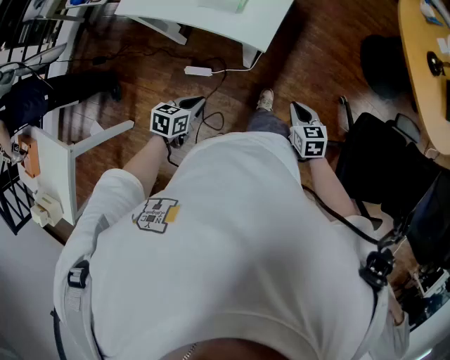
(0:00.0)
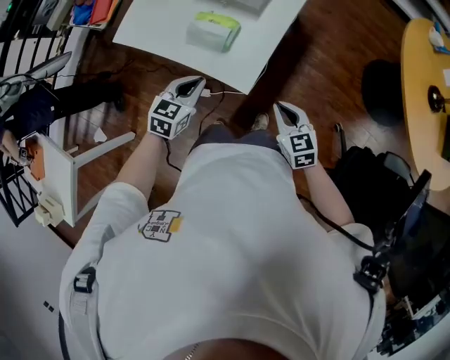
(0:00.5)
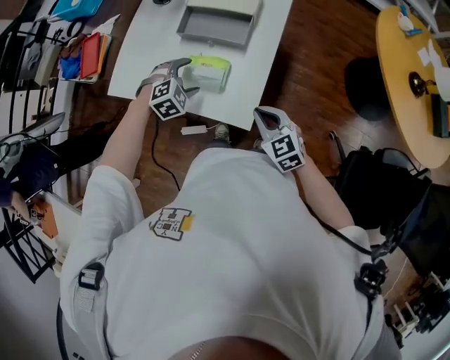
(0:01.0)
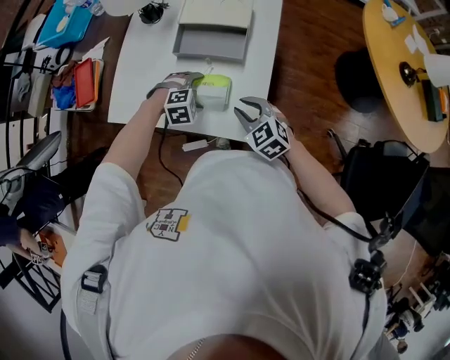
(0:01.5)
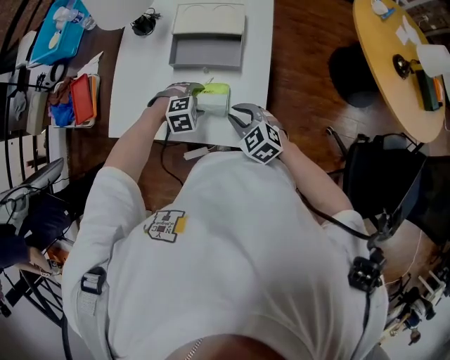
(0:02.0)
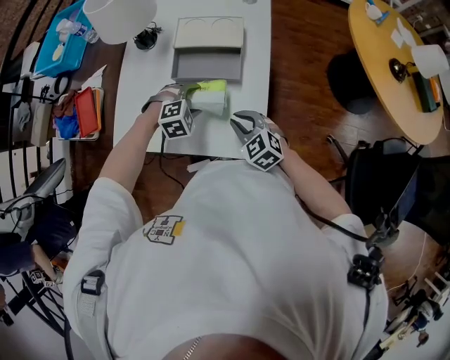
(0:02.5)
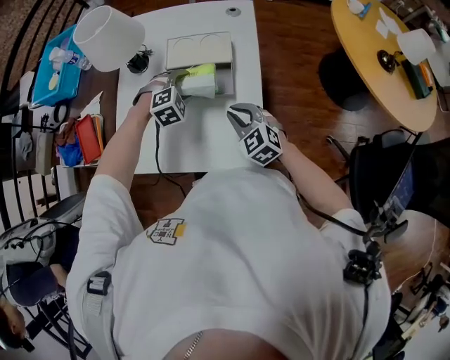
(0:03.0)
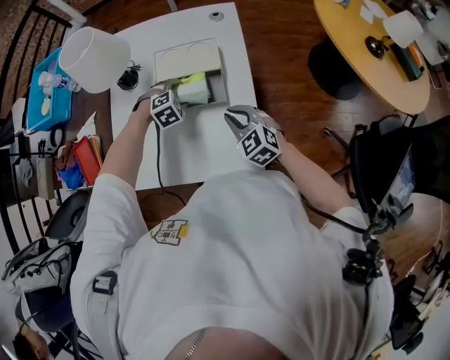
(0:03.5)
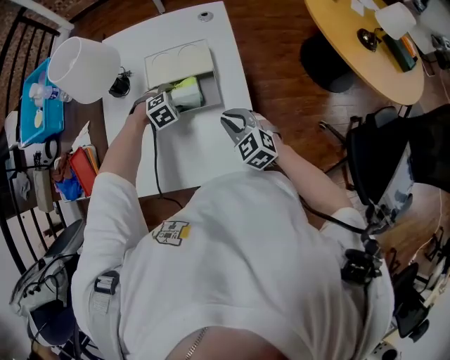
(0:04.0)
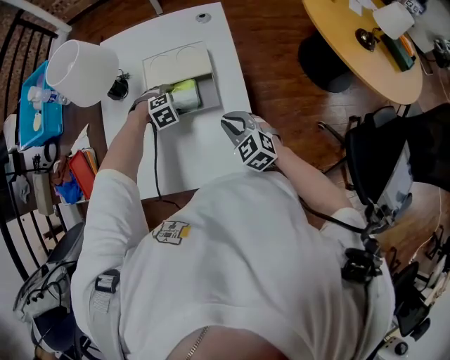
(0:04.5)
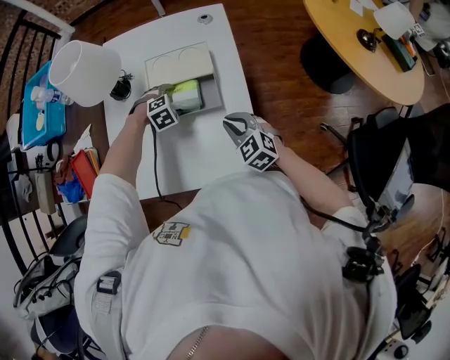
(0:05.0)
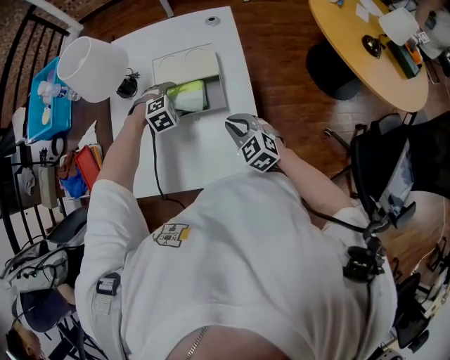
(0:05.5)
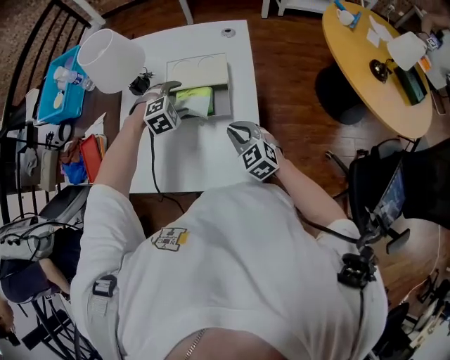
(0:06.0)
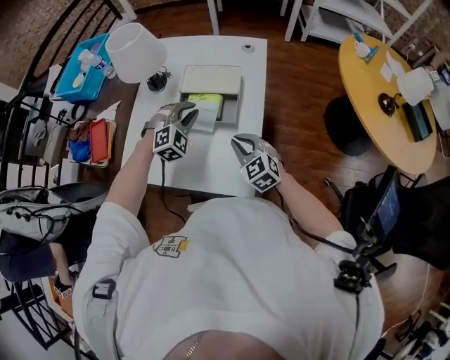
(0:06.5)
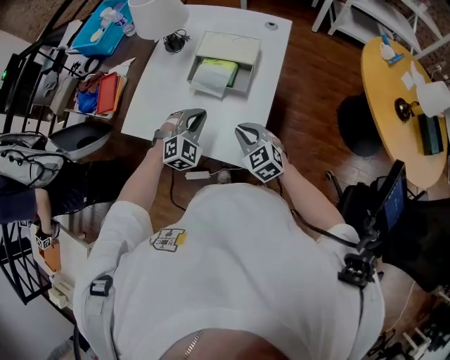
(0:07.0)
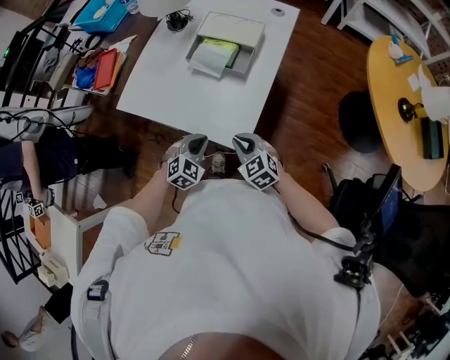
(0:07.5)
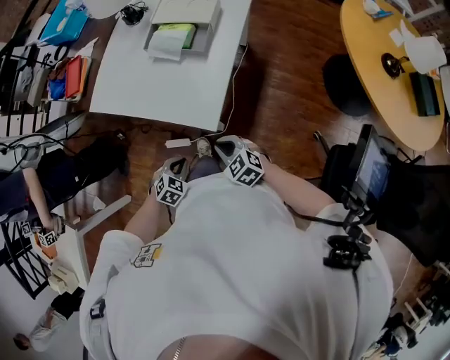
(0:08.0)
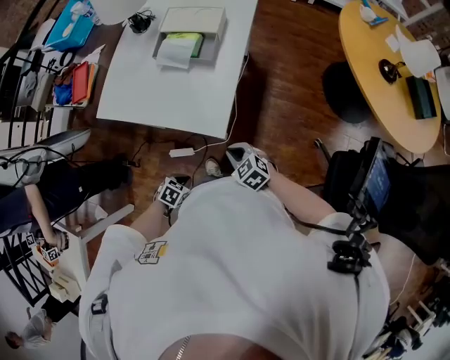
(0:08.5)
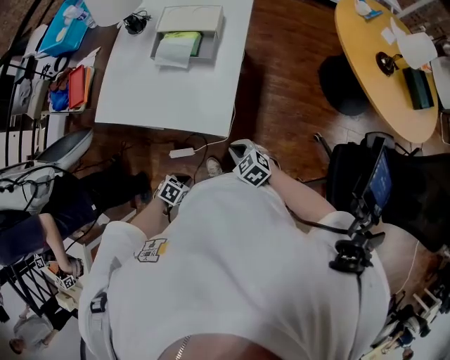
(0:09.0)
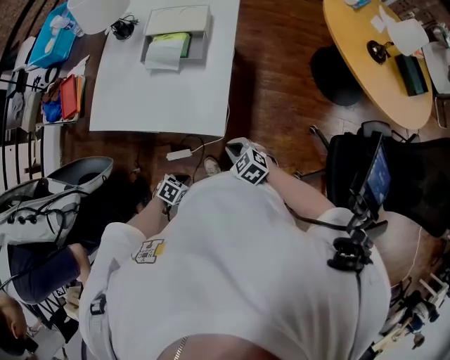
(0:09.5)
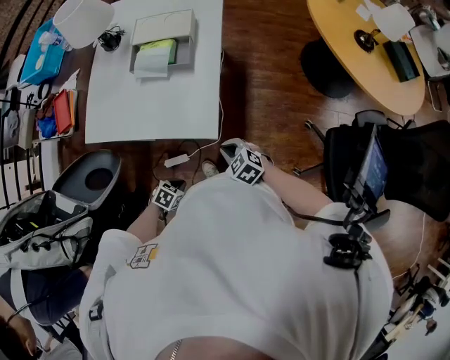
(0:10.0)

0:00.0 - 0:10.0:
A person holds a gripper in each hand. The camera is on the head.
0:00.0 - 0:02.0: The right gripper goes roughly 35 cm forward and to the left, and turns by some 30 degrees. Meanwhile the left gripper is displaced forward by approximately 35 cm, rolls clockwise, seen from behind, by some 90 degrees, and opens.
0:02.0 - 0:04.0: The left gripper heads forward, covering roughly 20 cm. The right gripper is displaced forward by approximately 10 cm.
0:04.0 - 0:06.0: The left gripper shifts some 10 cm upward.
0:06.0 - 0:08.0: The right gripper shifts by about 30 cm, and rotates roughly 30 degrees, while the left gripper ends up approximately 50 cm from where it was, rotates around the line of its fingers by about 50 degrees, counterclockwise from behind, and closes.
0:08.0 - 0:10.0: The left gripper ends up about 10 cm from where it was, and changes its angle by some 30 degrees.

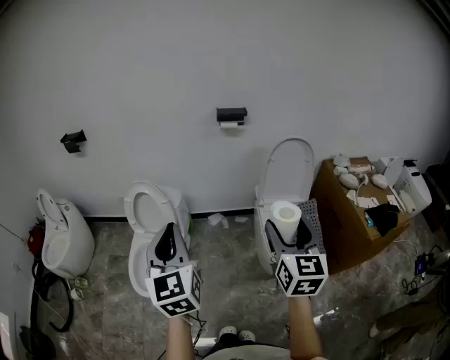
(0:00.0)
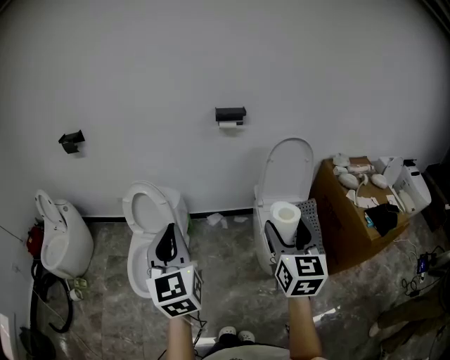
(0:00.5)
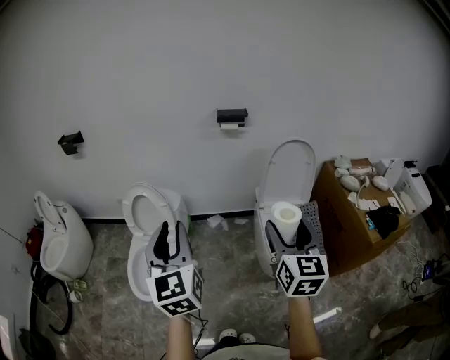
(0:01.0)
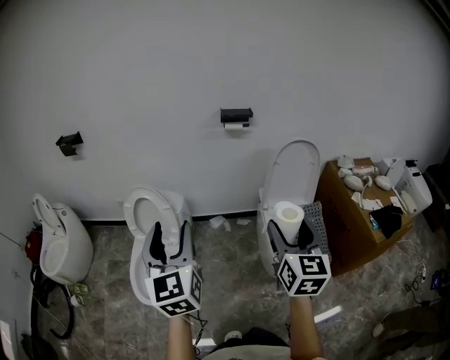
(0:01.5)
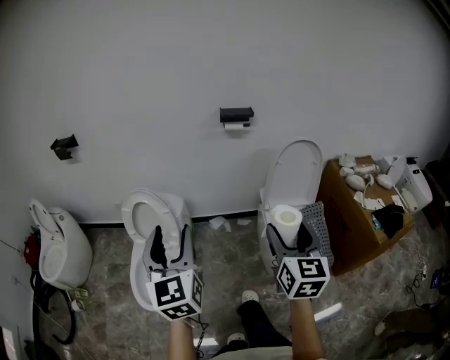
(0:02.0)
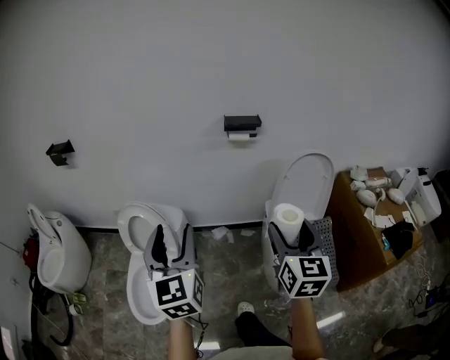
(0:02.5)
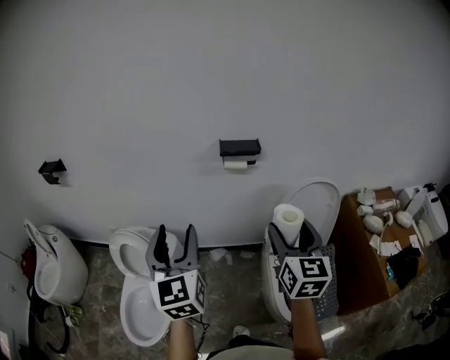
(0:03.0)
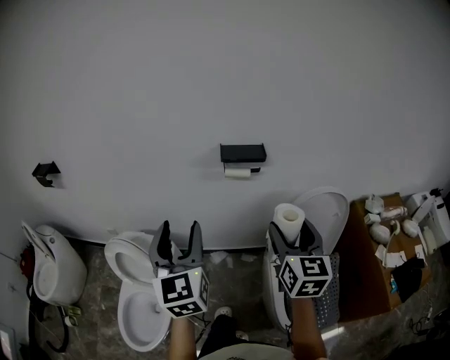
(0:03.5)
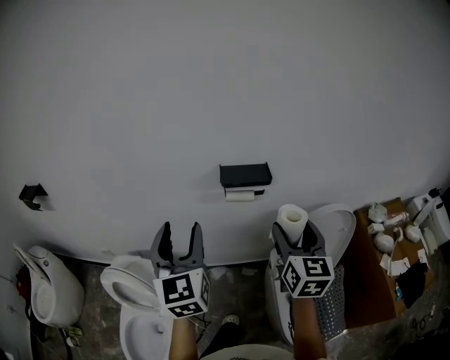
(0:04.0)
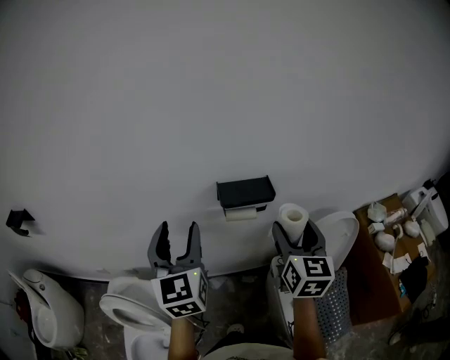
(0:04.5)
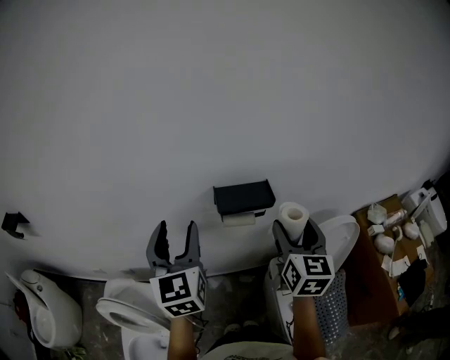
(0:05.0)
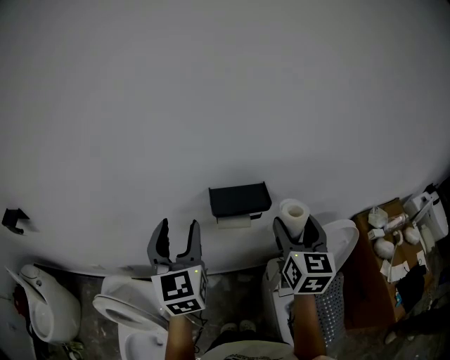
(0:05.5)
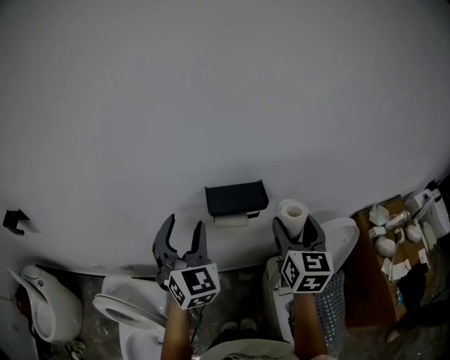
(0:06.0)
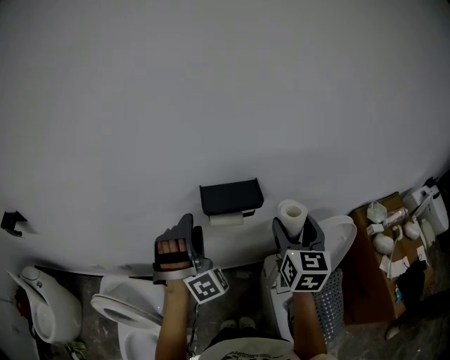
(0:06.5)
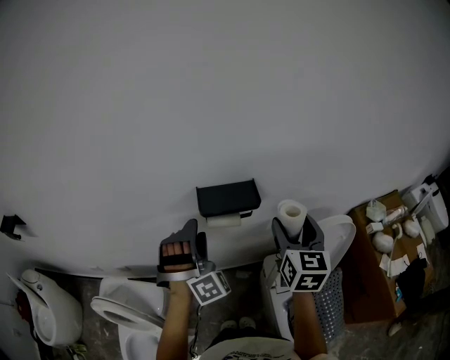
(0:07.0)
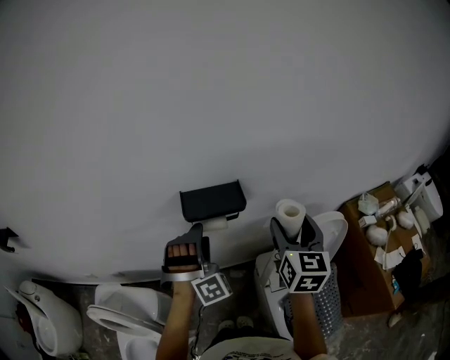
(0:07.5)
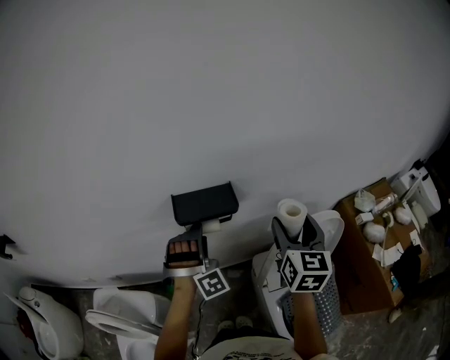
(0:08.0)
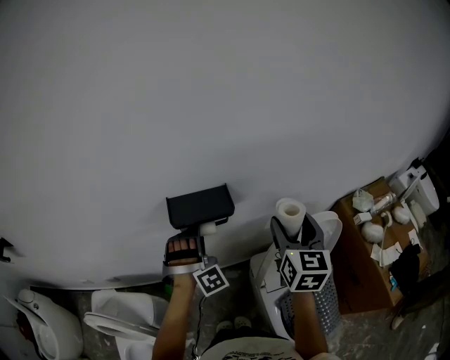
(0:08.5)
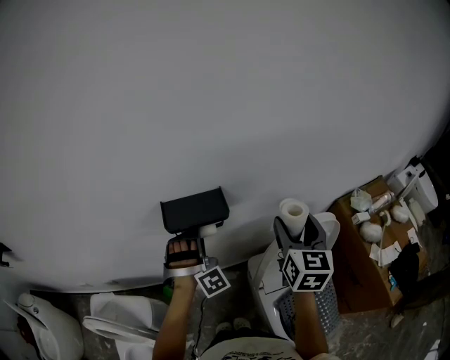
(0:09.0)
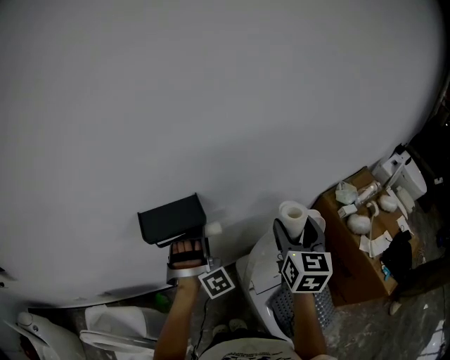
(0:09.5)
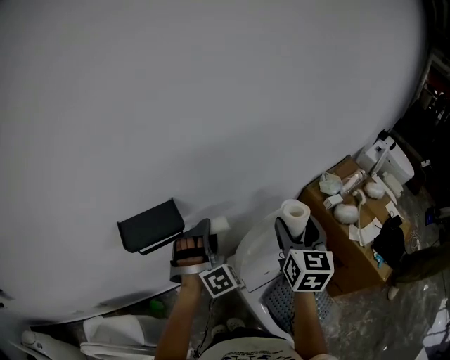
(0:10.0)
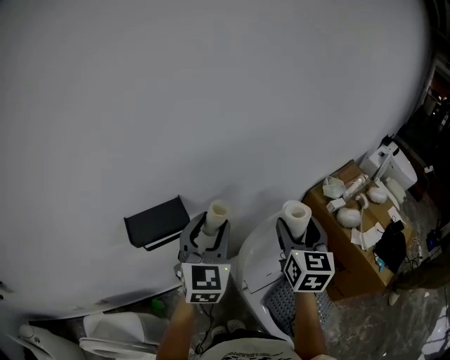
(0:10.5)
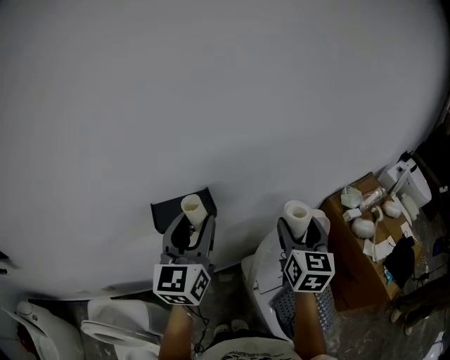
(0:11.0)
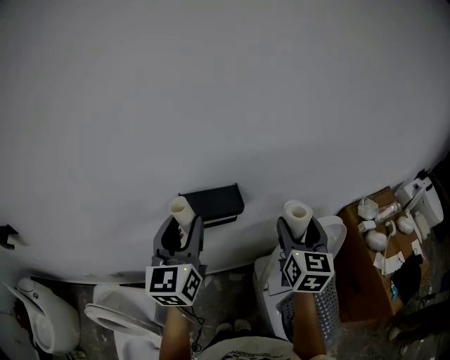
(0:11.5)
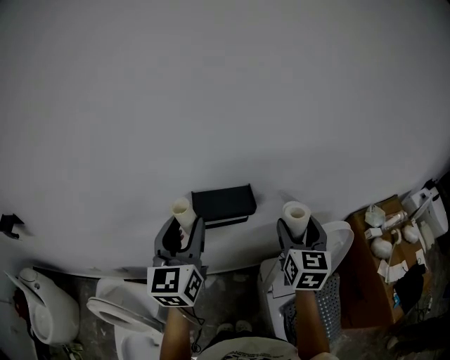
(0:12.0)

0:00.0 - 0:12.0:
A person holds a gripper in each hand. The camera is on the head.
0:00.0 - 0:02.0: The two grippers go some 10 cm forward. The left gripper opens up.
0:02.0 - 0:04.0: The two grippers travel together, forward, approximately 50 cm.
0:04.0 - 0:06.0: The two grippers go some 15 cm forward. The left gripper swivels some 30 degrees.
0:06.0 - 0:08.0: The right gripper moves to the right, some 10 cm. The left gripper is displaced downward and to the right by some 15 cm, and rotates around the line of its fingers by approximately 60 degrees, clockwise from behind.
0:08.0 - 0:10.0: Both grippers move to the right, some 15 cm.
0:10.0 - 0:12.0: The right gripper goes some 20 cm to the left. The left gripper heads to the left, upward and backward, covering about 30 cm, and rolls counterclockwise, seen from behind, by some 80 degrees.

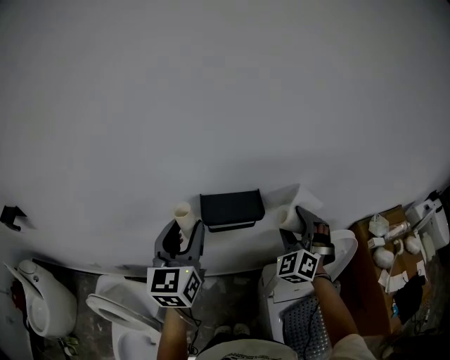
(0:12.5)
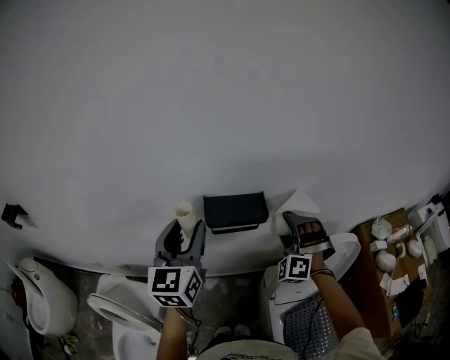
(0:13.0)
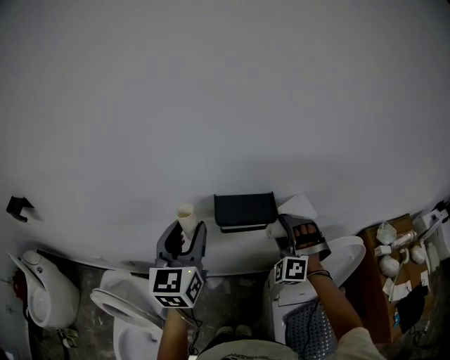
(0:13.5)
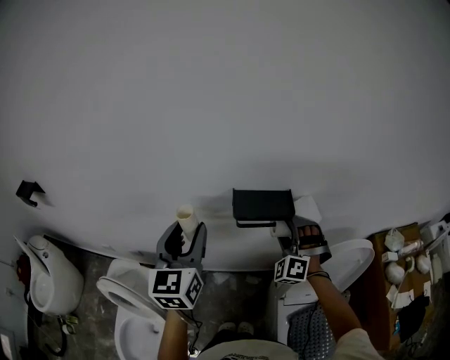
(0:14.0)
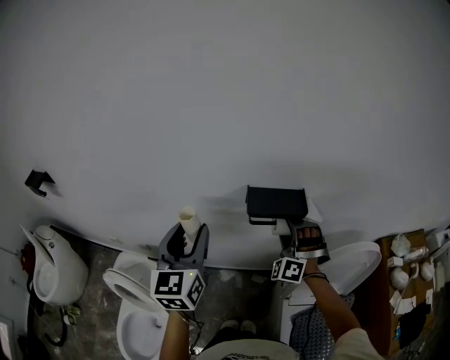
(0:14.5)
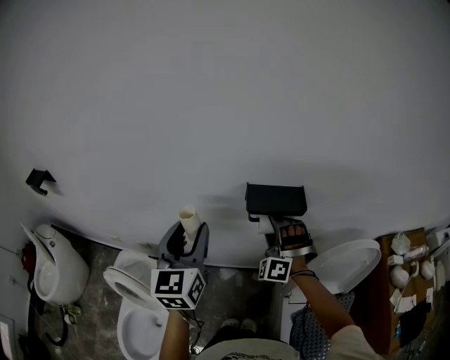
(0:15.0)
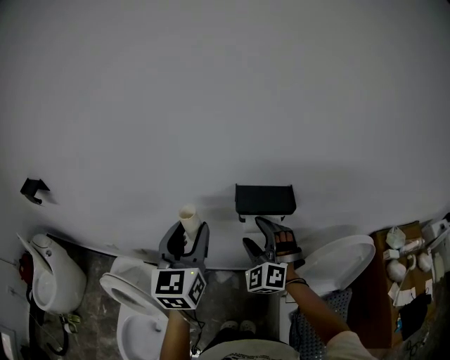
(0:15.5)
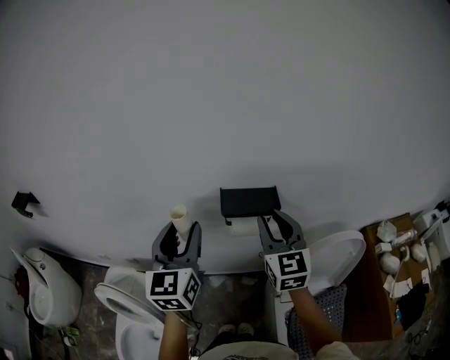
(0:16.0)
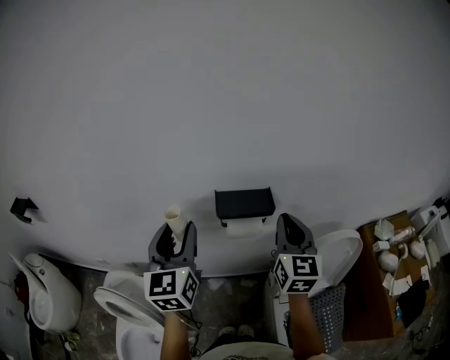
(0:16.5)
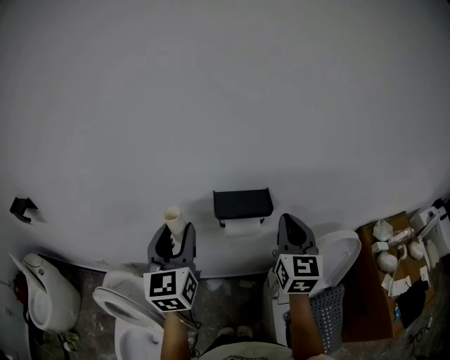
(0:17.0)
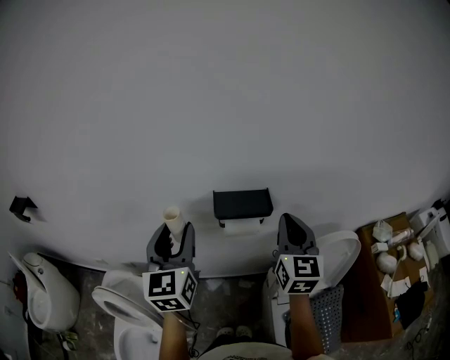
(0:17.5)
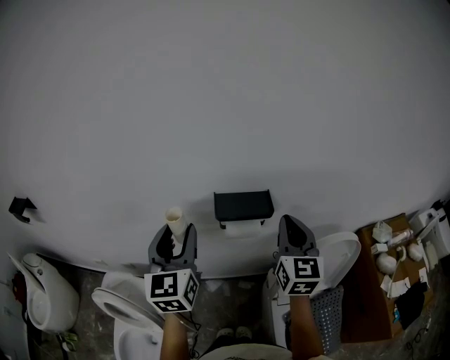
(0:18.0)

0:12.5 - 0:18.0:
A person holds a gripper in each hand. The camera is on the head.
0:12.5 - 0:14.5: The left gripper travels to the left and backward by roughly 10 cm, while the right gripper shifts about 15 cm to the left and downward, and swivels about 30 degrees.
0:14.5 - 0:16.0: The right gripper moves upward, roughly 15 cm, rolls clockwise, seen from behind, by some 70 degrees, and closes its fingers.
0:16.0 - 0:18.0: The right gripper goes roughly 5 cm to the right.
